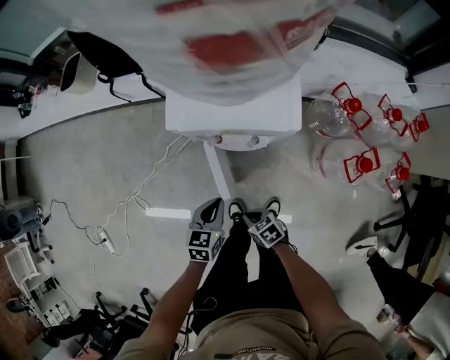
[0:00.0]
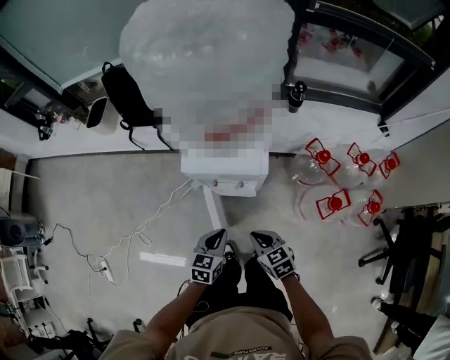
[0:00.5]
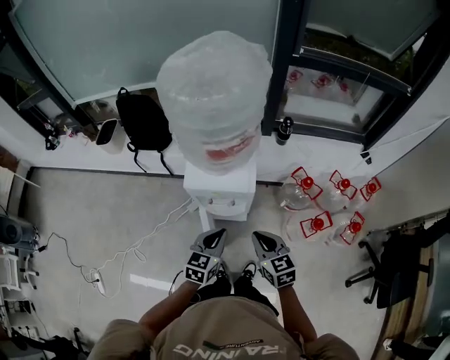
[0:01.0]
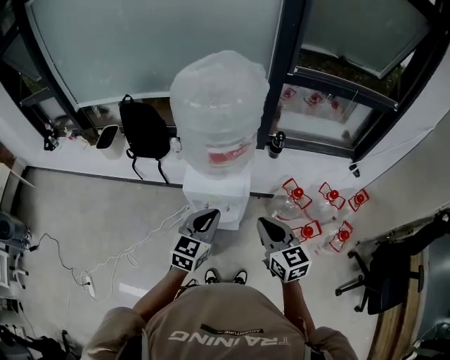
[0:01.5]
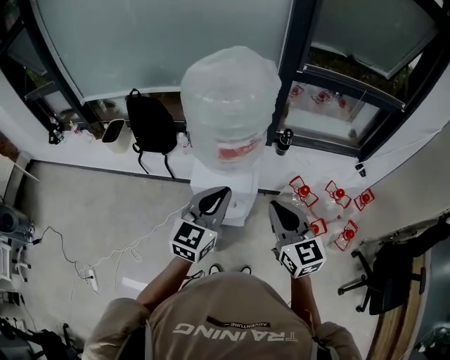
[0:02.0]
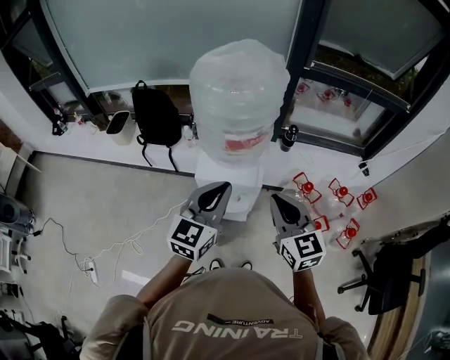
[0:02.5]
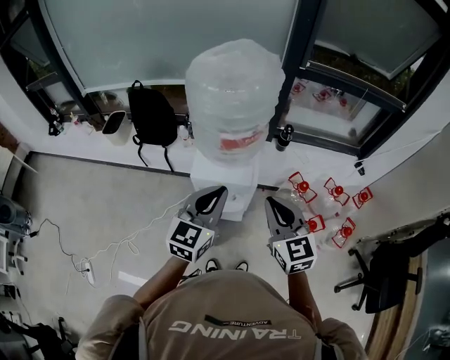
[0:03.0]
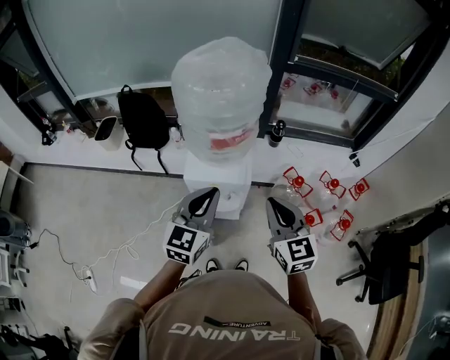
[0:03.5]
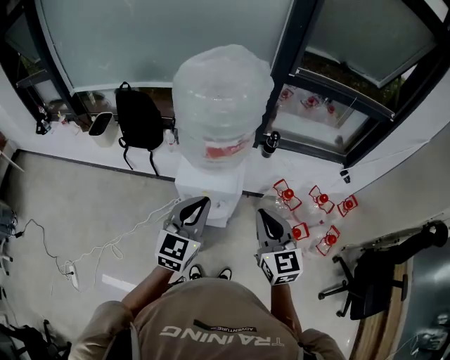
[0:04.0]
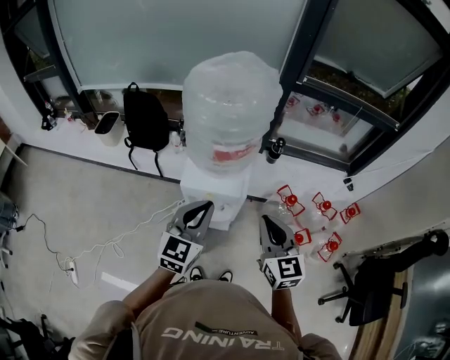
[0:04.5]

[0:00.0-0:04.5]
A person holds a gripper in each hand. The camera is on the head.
0:00.0 to 0:02.0: The two grippers go approximately 50 cm upward. The left gripper tilts its fingers roughly 40 degrees upward. The right gripper angles its fingers upward, by about 40 degrees.
0:02.0 to 0:04.5: The grippers make only small movements.

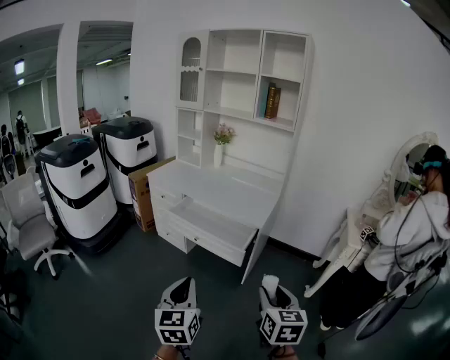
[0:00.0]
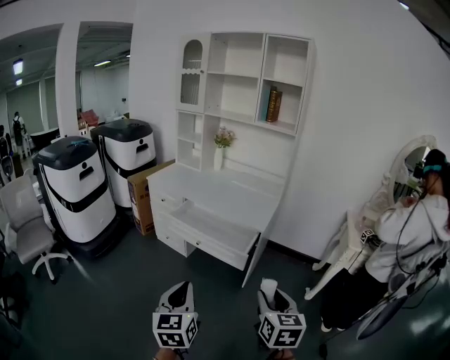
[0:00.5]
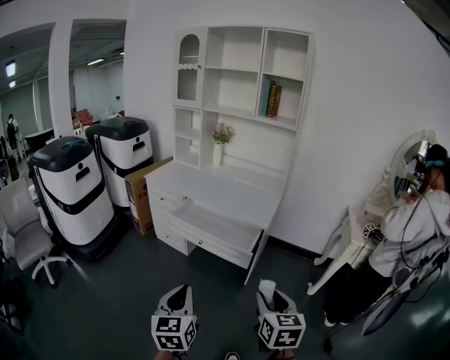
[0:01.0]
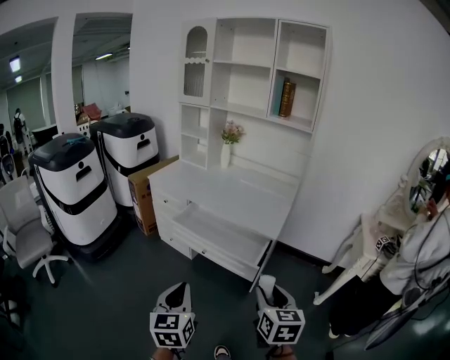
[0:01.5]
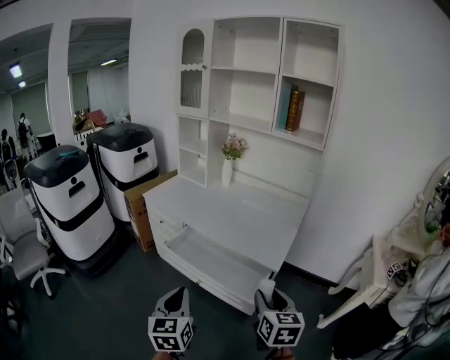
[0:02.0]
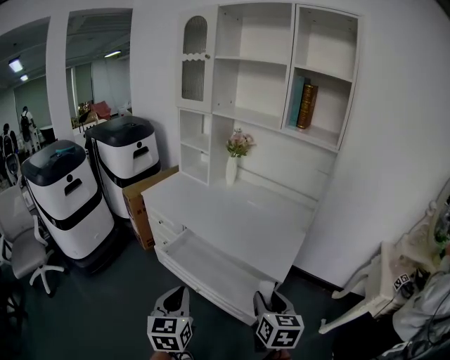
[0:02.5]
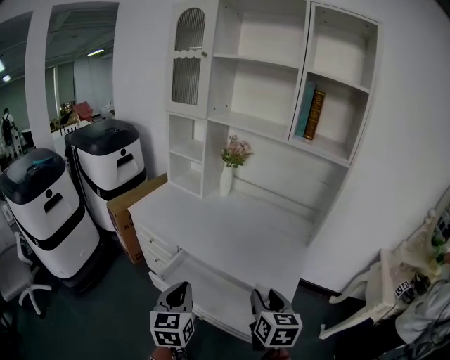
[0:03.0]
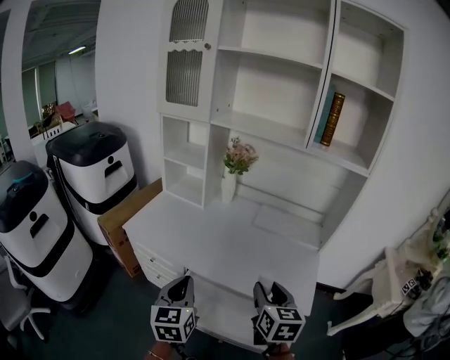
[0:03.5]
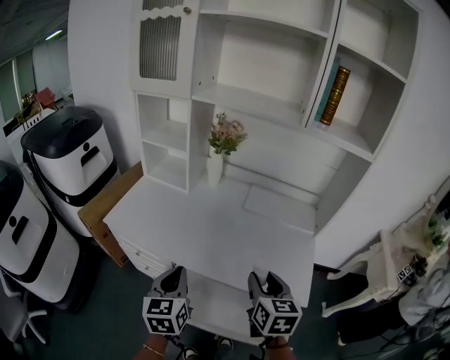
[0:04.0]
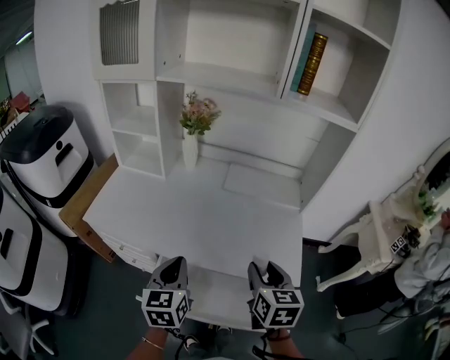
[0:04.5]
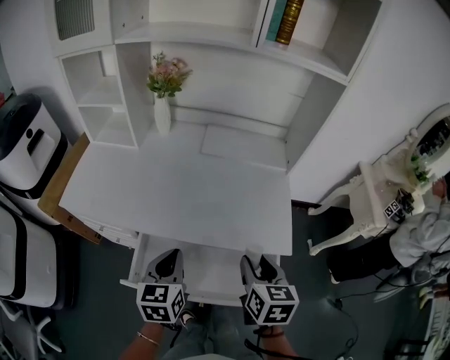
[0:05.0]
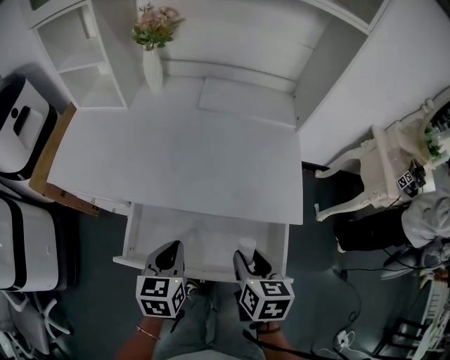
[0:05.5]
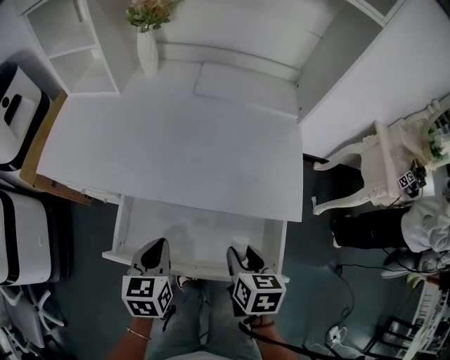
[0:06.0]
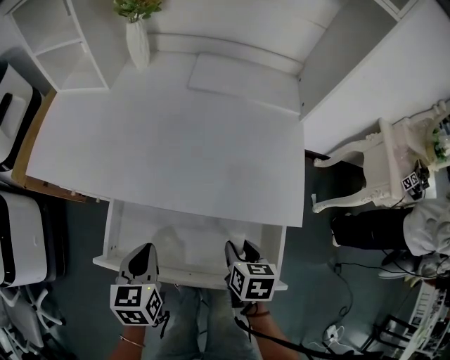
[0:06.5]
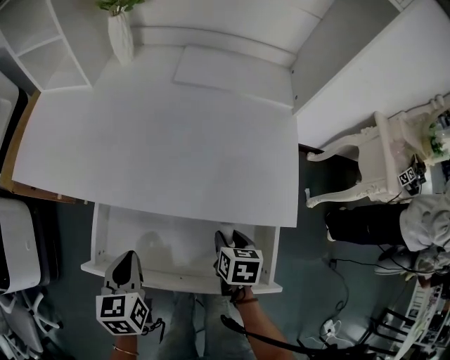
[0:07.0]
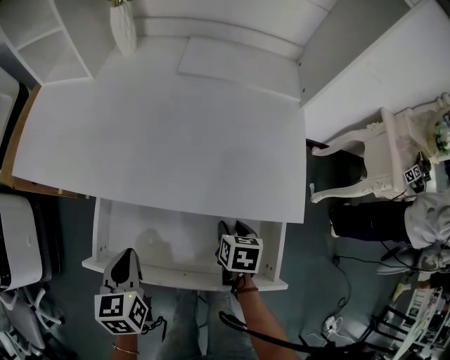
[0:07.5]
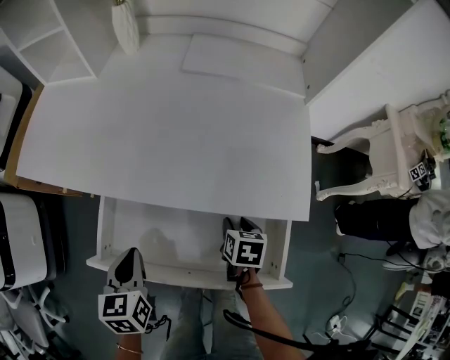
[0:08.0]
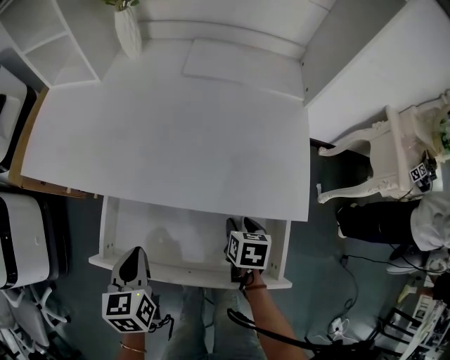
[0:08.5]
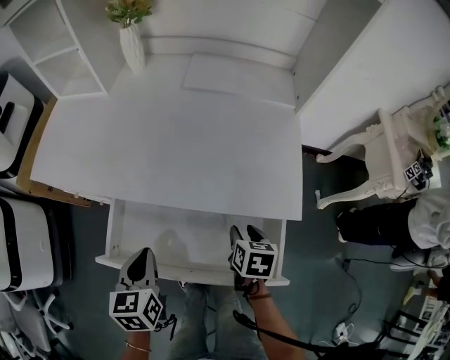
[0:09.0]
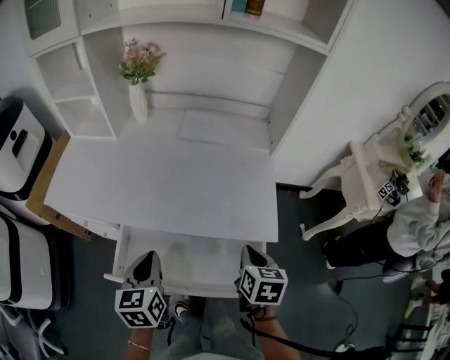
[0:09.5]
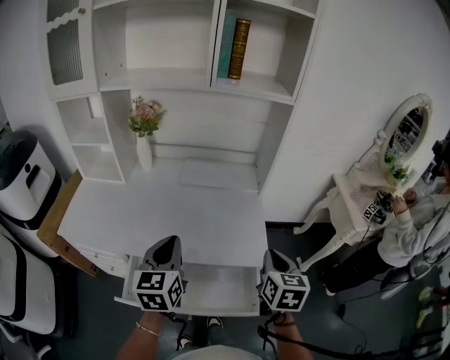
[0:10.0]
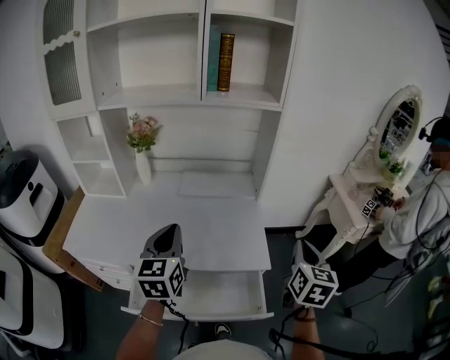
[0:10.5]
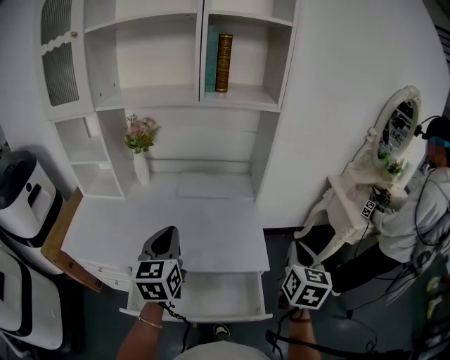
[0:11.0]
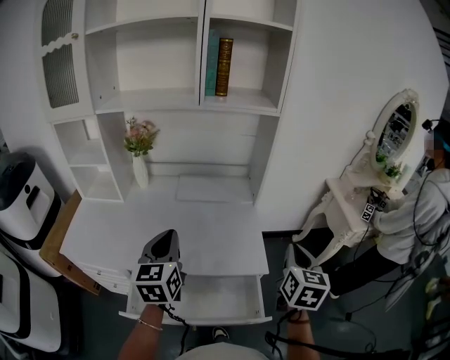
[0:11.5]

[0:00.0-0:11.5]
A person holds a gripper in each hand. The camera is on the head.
0:00.0 to 0:02.0: Both grippers move forward, about 30 cm.
0:02.0 to 0:04.0: The two grippers go about 40 cm forward.
0:04.0 to 0:06.0: The left gripper is displaced downward and to the right by some 20 cm, and rotates about 30 degrees. Meanwhile the right gripper moves downward and backward, approximately 25 cm, and swivels some 30 degrees.
0:06.0 to 0:07.5: The right gripper shifts some 15 cm downward and forward. Meanwhile the left gripper moves about 5 cm.
0:07.5 to 0:09.5: The right gripper shifts some 20 cm upward, and closes up. The left gripper is displaced upward and to the right by approximately 10 cm.
0:09.5 to 0:11.5: The left gripper goes roughly 20 cm upward and forward, and changes its angle by some 20 degrees. Meanwhile the right gripper travels upward and to the right by roughly 25 cm, and rotates approximately 30 degrees.

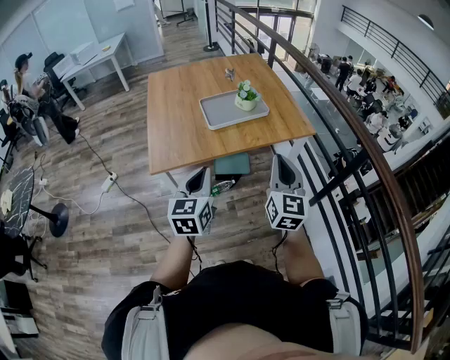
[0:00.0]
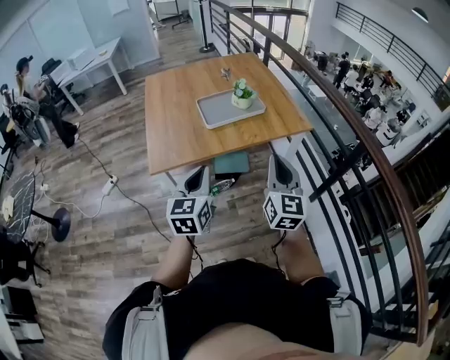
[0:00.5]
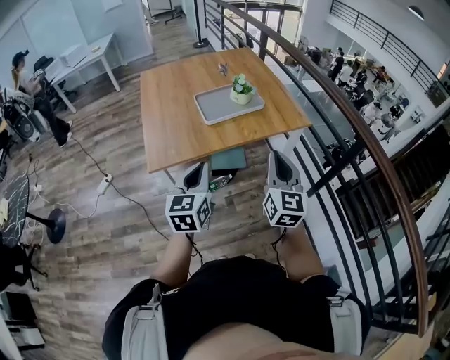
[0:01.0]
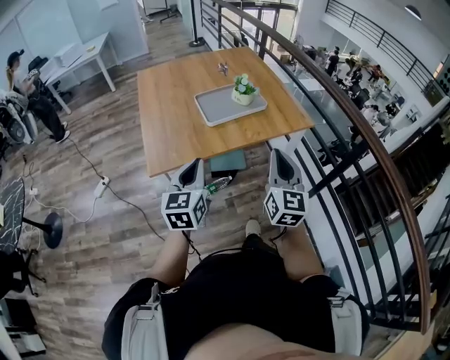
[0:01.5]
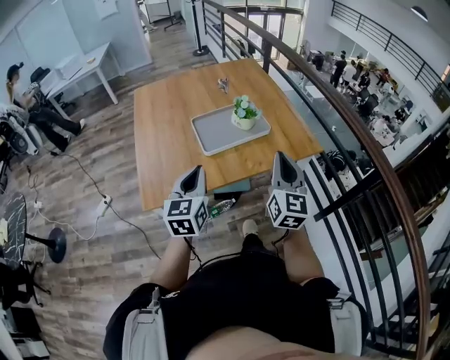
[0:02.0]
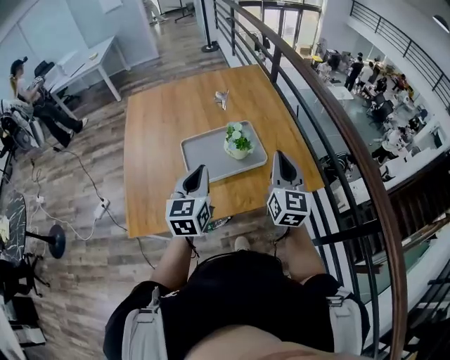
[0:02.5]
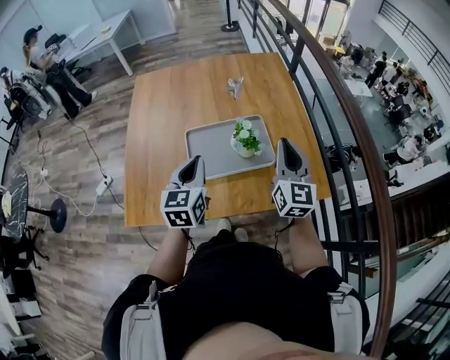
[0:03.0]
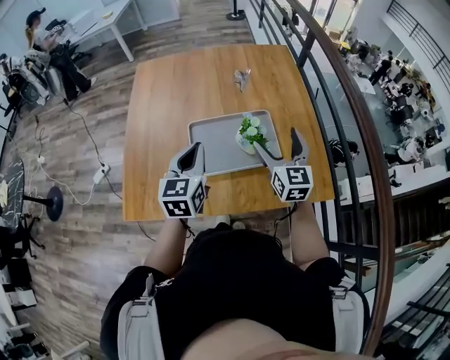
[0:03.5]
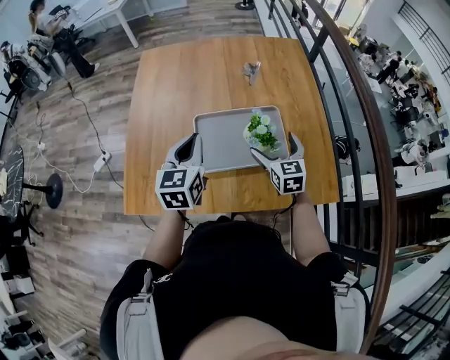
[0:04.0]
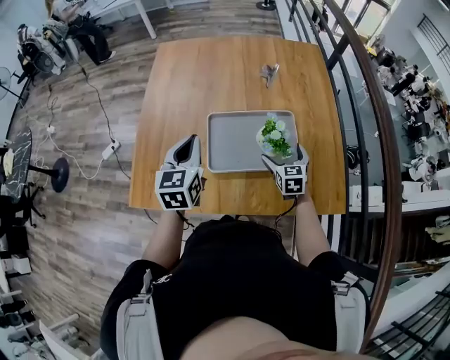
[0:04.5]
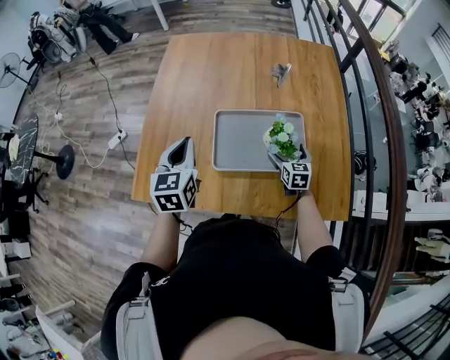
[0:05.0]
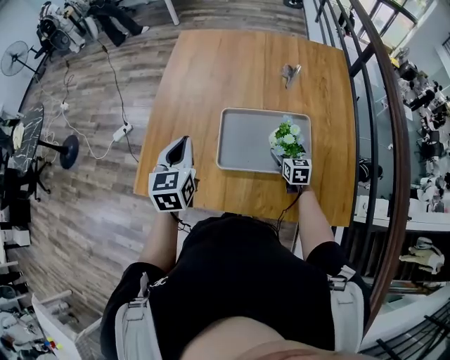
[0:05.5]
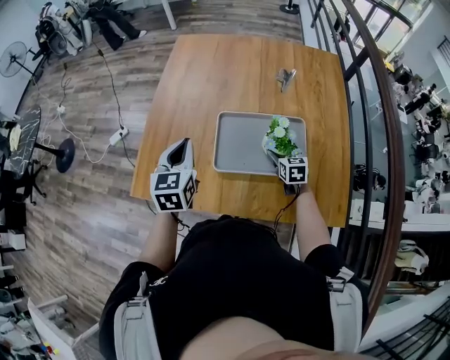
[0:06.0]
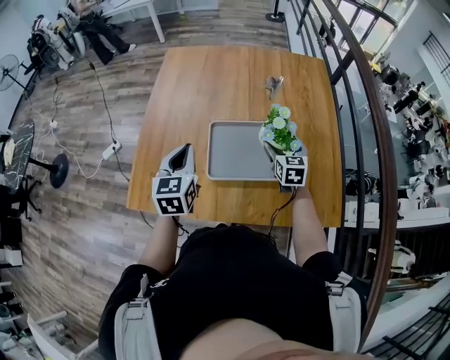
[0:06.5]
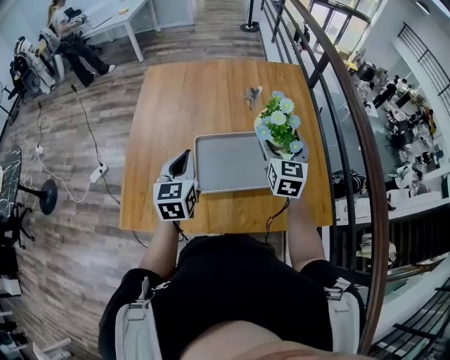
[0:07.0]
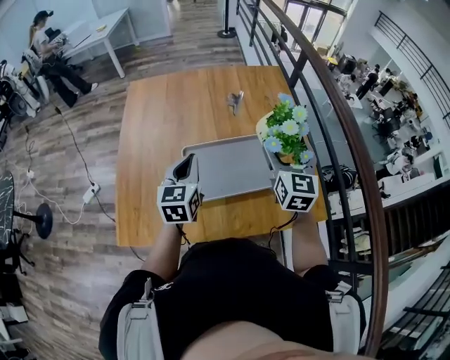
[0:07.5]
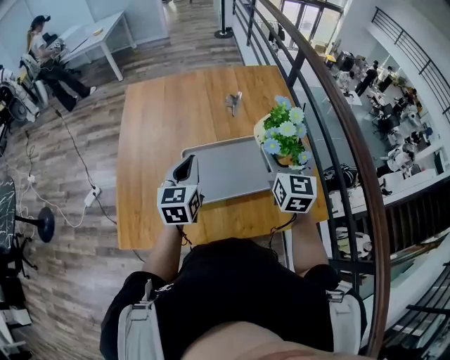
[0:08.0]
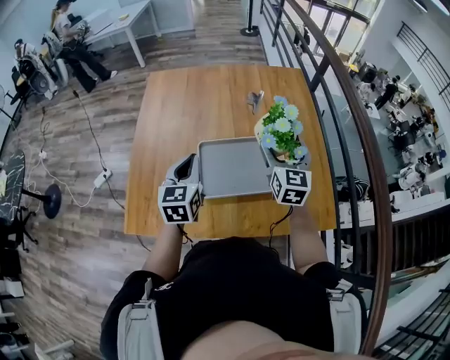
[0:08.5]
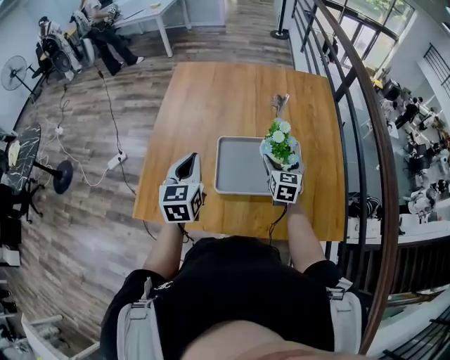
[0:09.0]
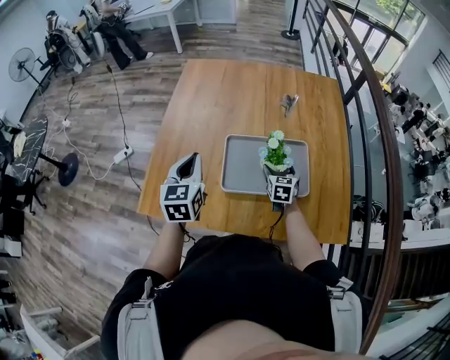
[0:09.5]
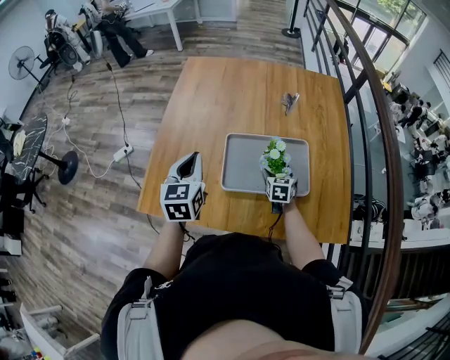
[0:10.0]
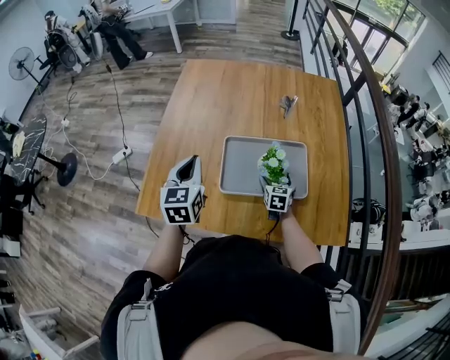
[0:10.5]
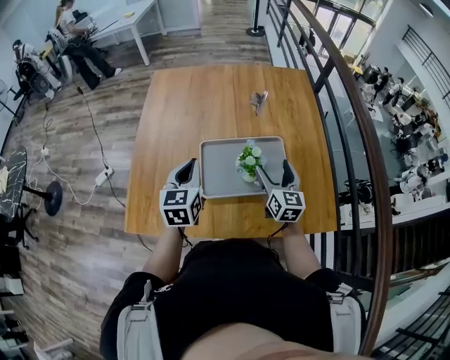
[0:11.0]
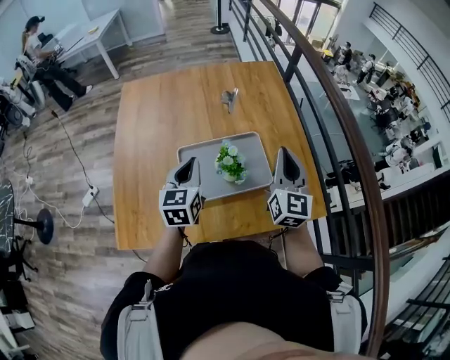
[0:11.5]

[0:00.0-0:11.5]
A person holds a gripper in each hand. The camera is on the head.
0:00.0 to 0:02.0: Both grippers move forward, some 20 cm.
0:02.0 to 0:04.0: The grippers both shift forward by about 35 cm. The right gripper rotates approximately 40 degrees, and opens up.
0:04.0 to 0:06.0: The right gripper shifts approximately 15 cm downward and forward. The left gripper travels to the left by roughly 10 cm.
0:06.0 to 0:07.5: The right gripper goes some 30 cm upward, and angles its fingers upward, by approximately 30 degrees. The left gripper heads to the right, covering roughly 10 cm.
0:07.5 to 0:09.5: The left gripper travels to the left and backward by some 10 cm, while the right gripper shifts approximately 30 cm downward, and swivels roughly 30 degrees.
0:09.5 to 0:11.5: The left gripper shifts some 15 cm to the right. Meanwhile the right gripper shifts some 30 cm upward and to the right, angles its fingers upward, by some 40 degrees, and closes up.
